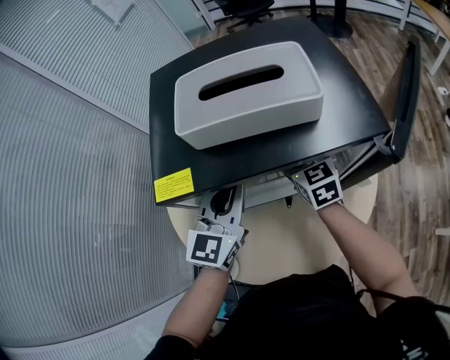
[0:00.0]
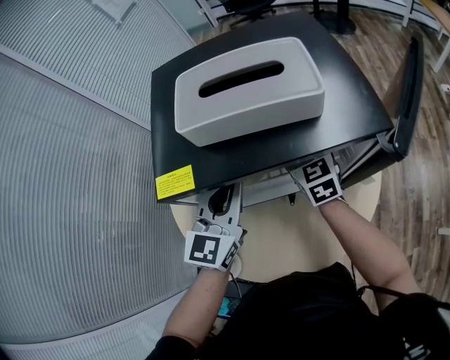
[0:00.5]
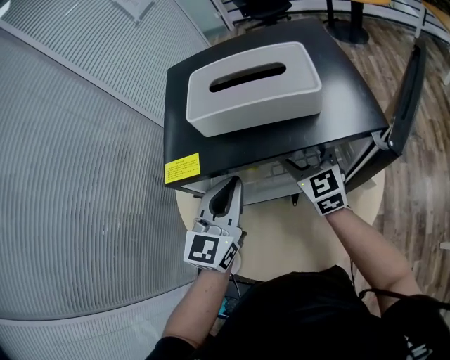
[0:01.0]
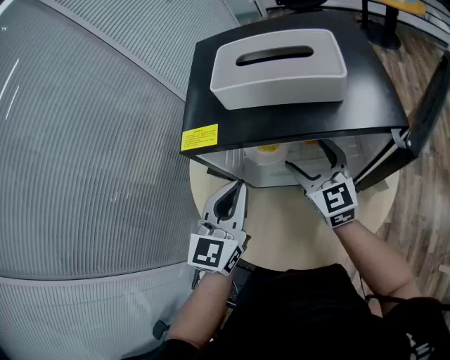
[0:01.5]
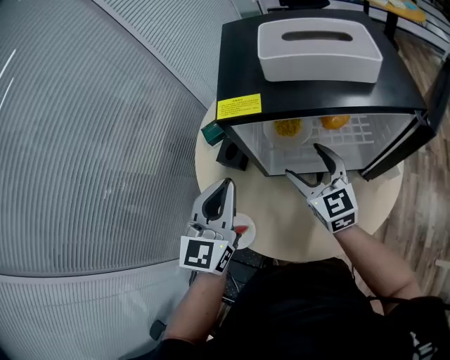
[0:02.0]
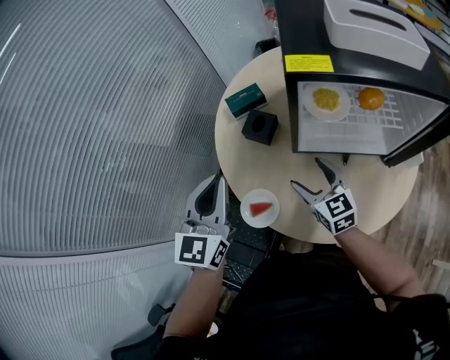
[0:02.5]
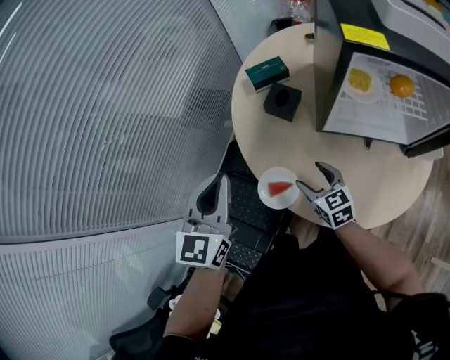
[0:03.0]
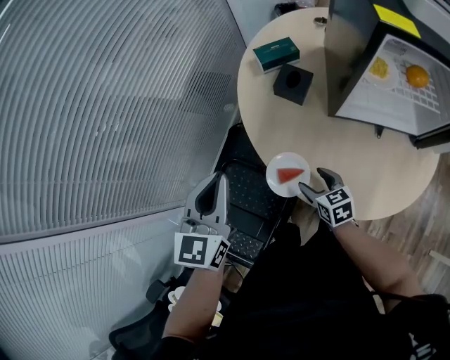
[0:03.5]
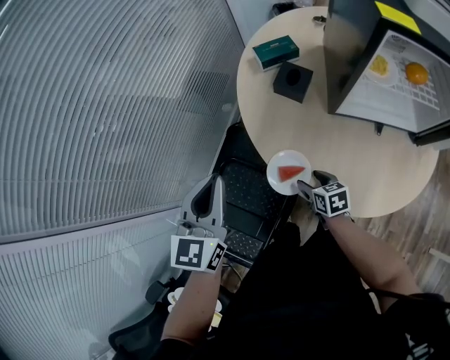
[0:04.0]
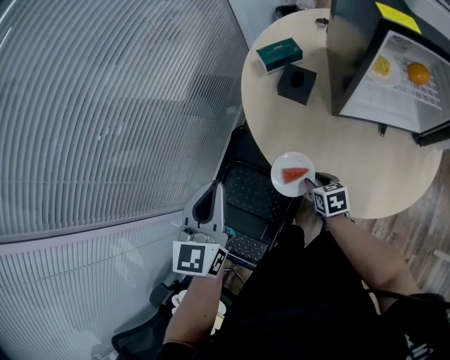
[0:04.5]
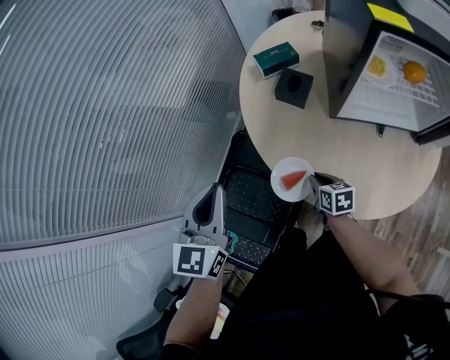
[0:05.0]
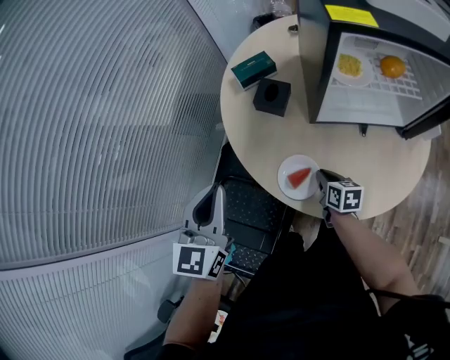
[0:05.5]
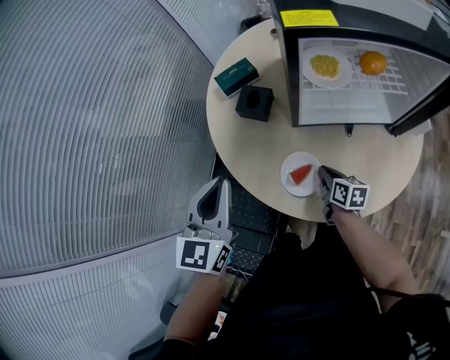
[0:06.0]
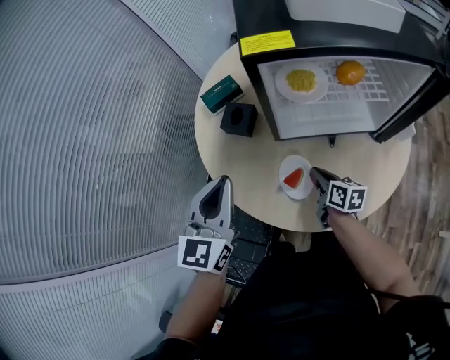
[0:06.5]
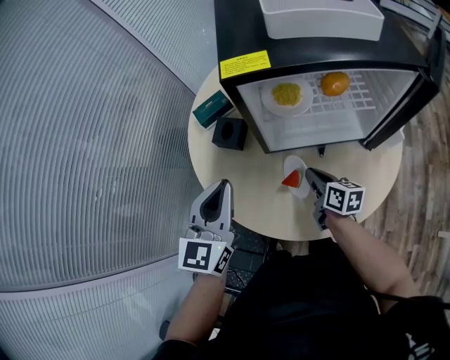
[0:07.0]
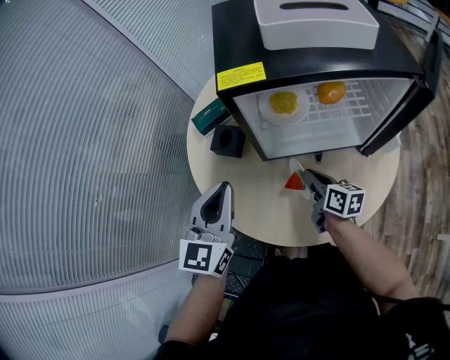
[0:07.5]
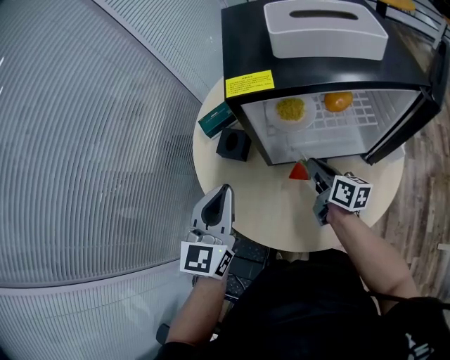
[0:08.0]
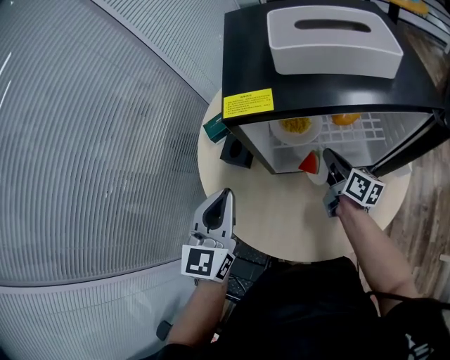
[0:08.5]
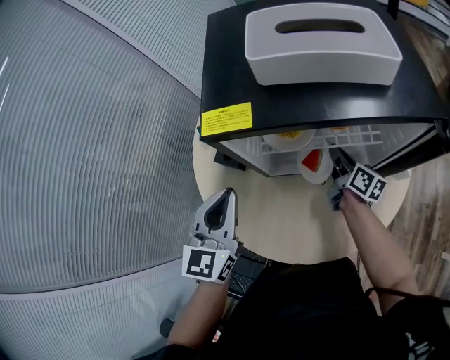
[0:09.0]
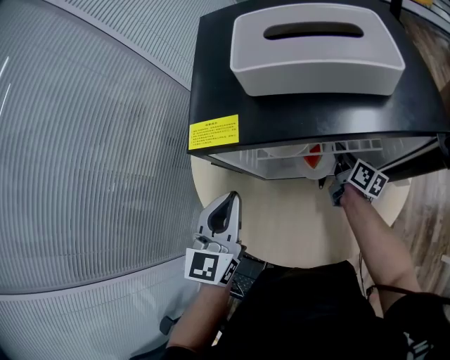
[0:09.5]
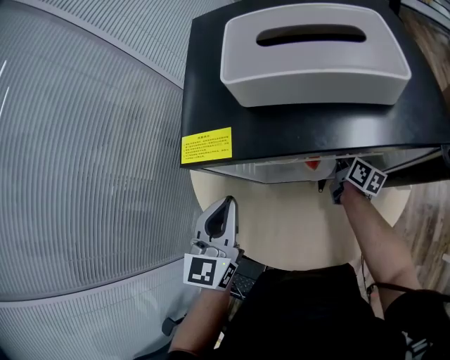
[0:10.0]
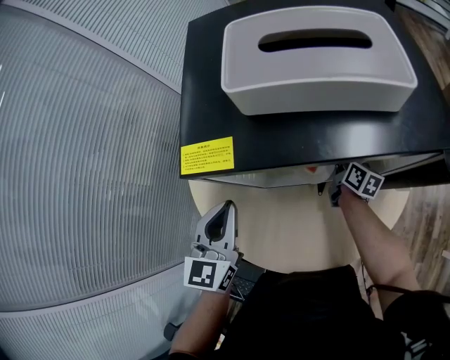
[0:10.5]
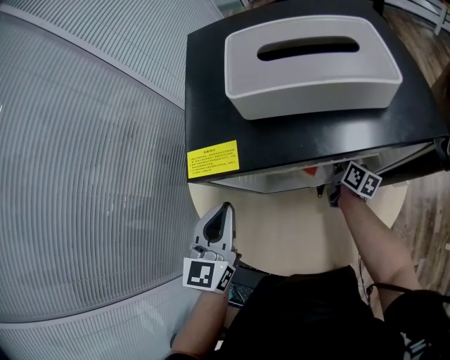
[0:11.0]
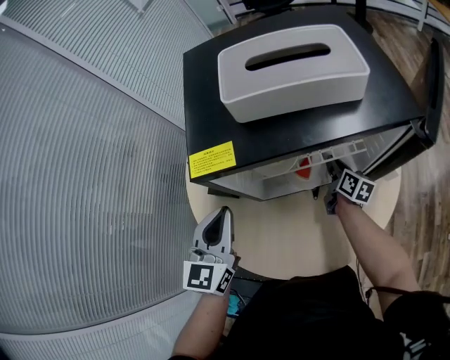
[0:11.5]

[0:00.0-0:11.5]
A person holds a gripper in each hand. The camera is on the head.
0:00.0 to 0:02.0: The left gripper heads to the left and backward, covering roughly 20 cm, while the right gripper moves backward and to the left, roughly 20 cm.
0:02.0 to 0:04.0: The right gripper moves downward, to the left and backward, roughly 40 cm, and tilts its fingers approximately 40 degrees downward, while the left gripper shifts roughly 30 cm to the left.
0:04.0 to 0:06.0: The grippers both shift to the right by about 15 cm. The right gripper changes its angle by some 30 degrees, and closes its fingers.
0:06.0 to 0:07.5: The left gripper shifts some 10 cm to the right. Meanwhile the right gripper goes about 15 cm upward, to the right and forward.
0:07.5 to 0:09.5: The right gripper shifts roughly 20 cm forward and to the right; the left gripper is displaced forward and to the right by some 10 cm.
0:09.5 to 0:11.5: There are only small adjustments of the grippers.

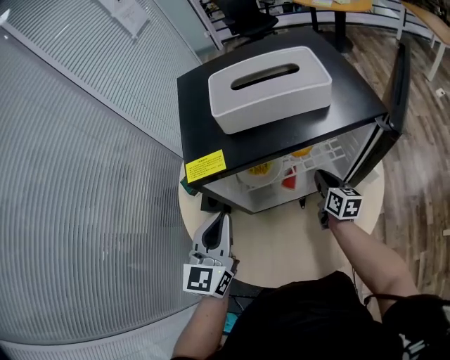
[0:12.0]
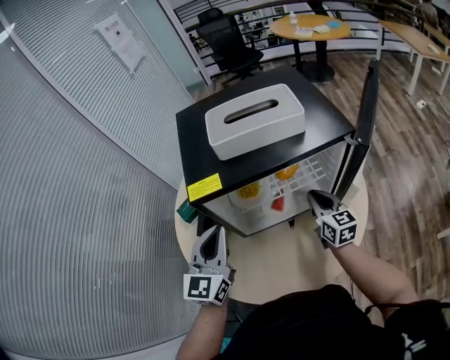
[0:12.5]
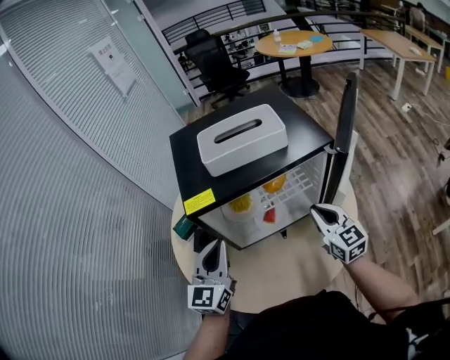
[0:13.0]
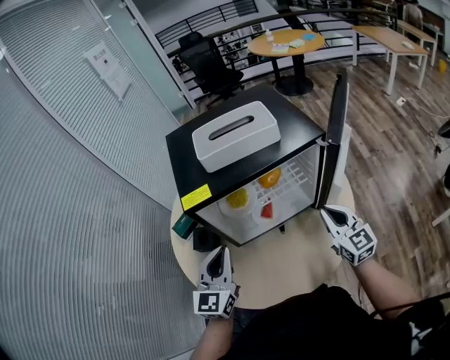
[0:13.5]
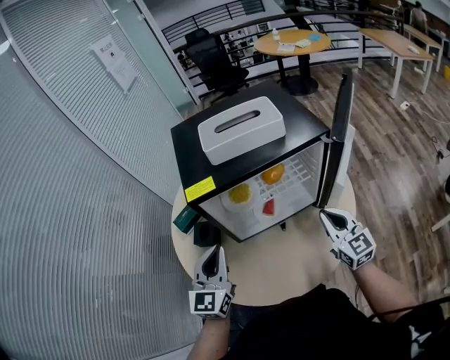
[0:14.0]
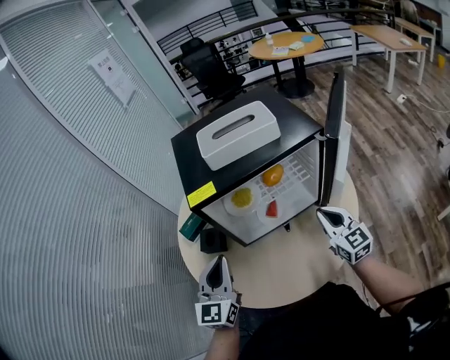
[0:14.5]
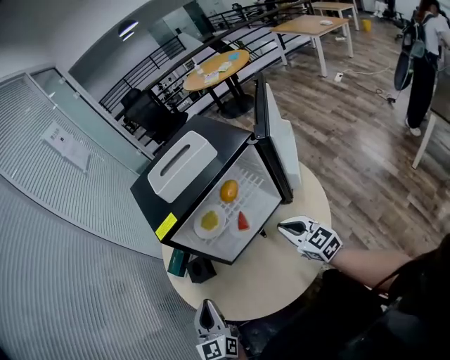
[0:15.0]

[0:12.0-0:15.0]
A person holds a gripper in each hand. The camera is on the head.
0:12.0 to 0:13.5: The right gripper moves upward and backward, approximately 20 cm, and changes its angle by roughly 40 degrees. Meanwhile the left gripper shifts by some 5 cm.
0:13.5 to 0:15.0: The right gripper shifts roughly 10 cm to the left and backward. Meanwhile the left gripper shifts approximately 10 cm backward and to the left.

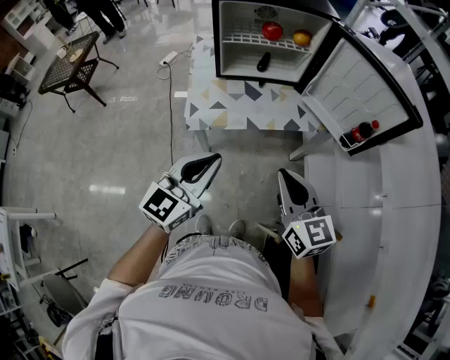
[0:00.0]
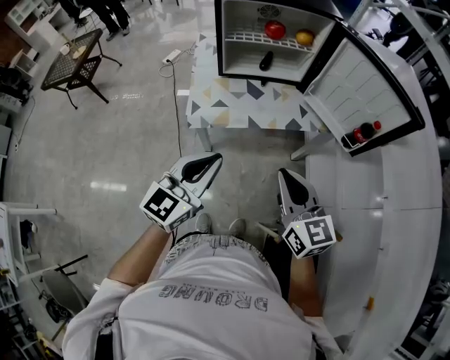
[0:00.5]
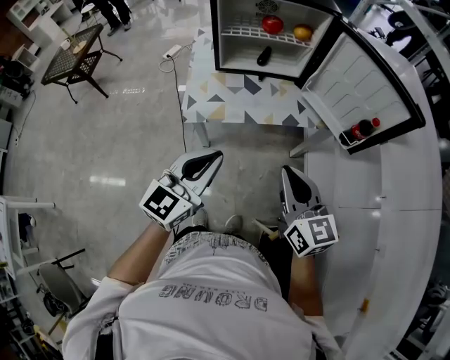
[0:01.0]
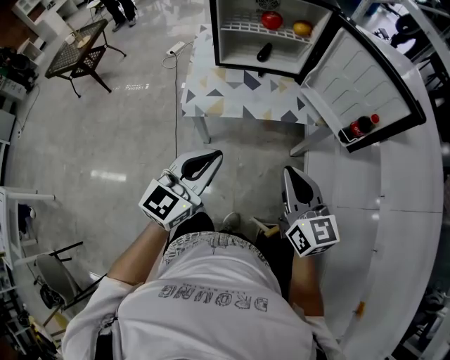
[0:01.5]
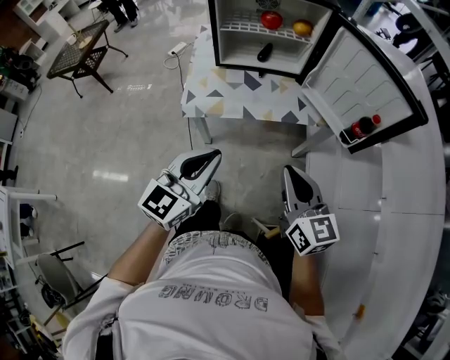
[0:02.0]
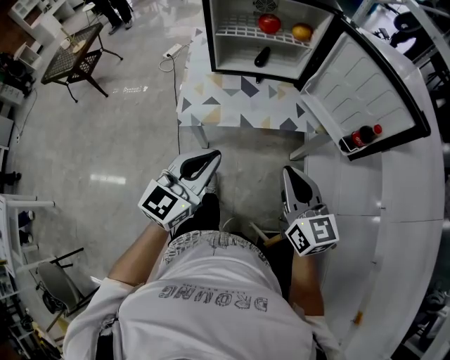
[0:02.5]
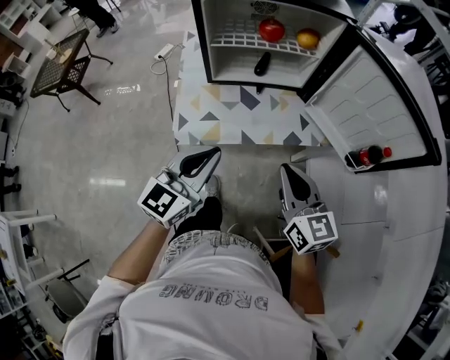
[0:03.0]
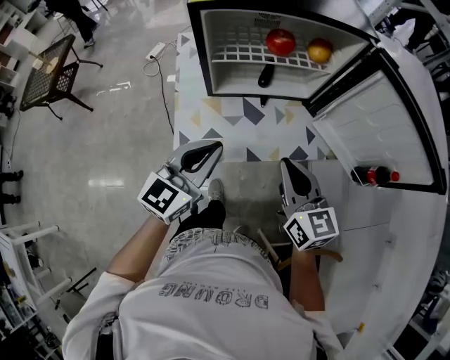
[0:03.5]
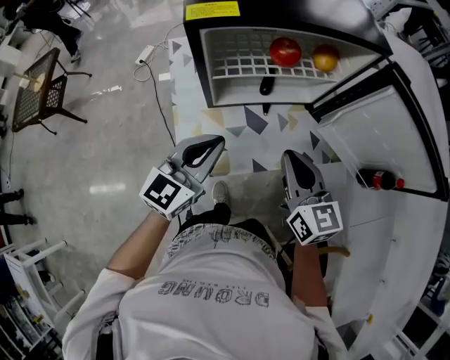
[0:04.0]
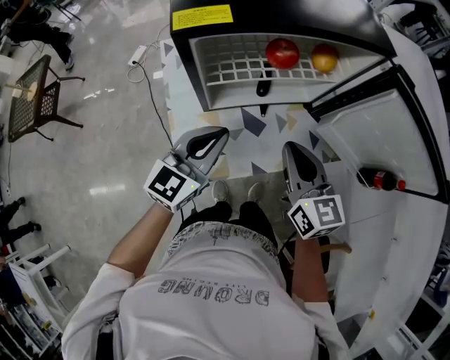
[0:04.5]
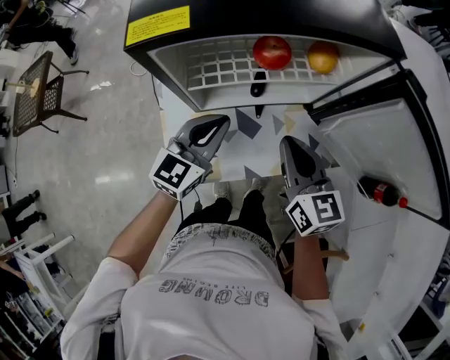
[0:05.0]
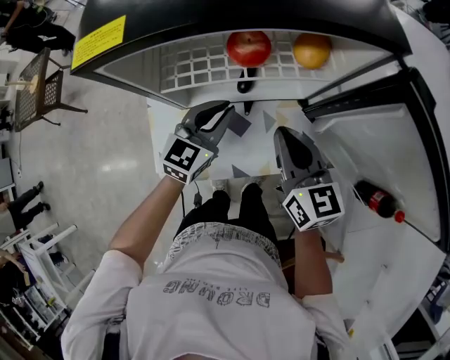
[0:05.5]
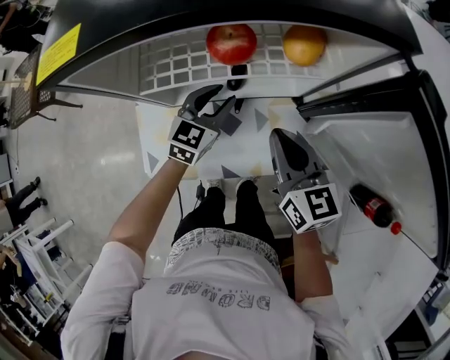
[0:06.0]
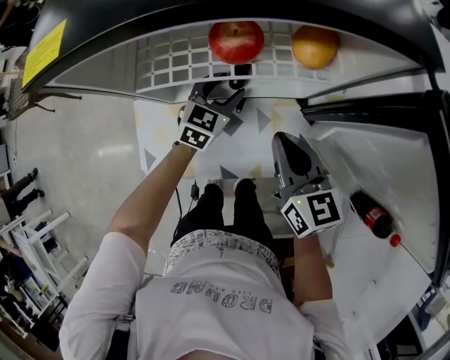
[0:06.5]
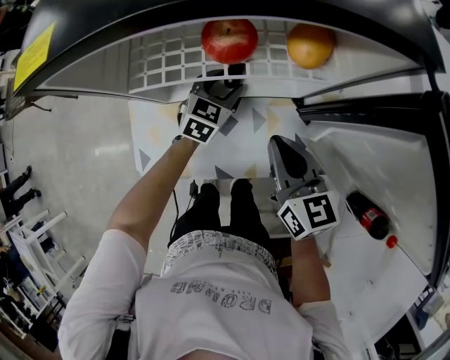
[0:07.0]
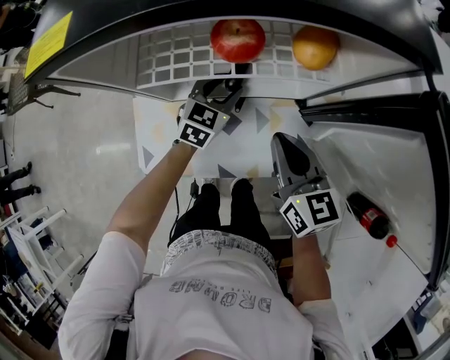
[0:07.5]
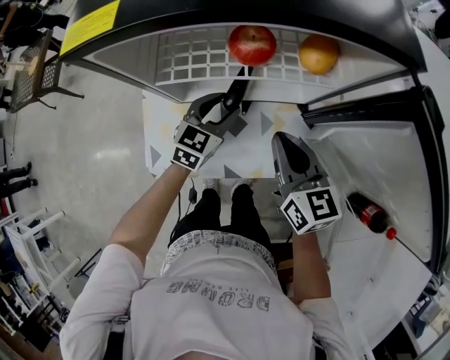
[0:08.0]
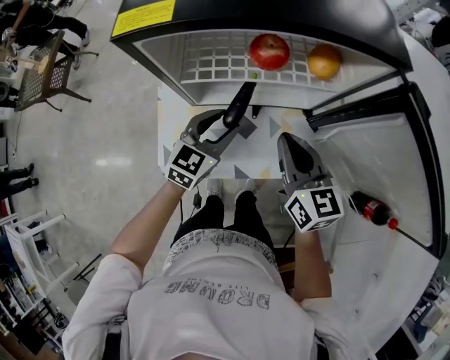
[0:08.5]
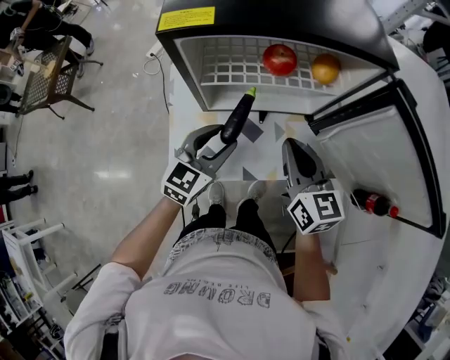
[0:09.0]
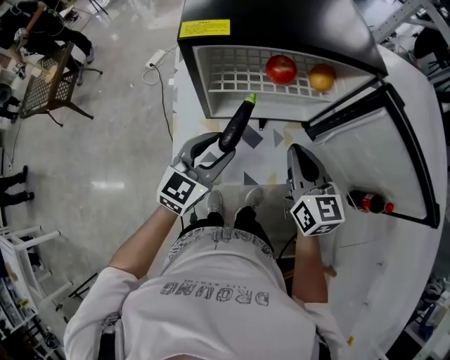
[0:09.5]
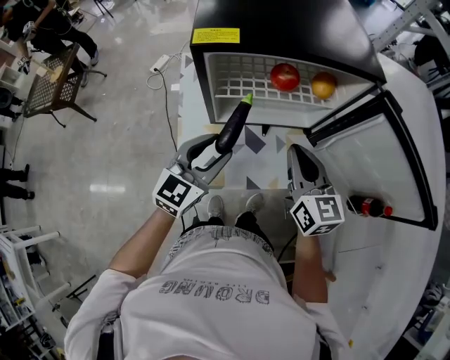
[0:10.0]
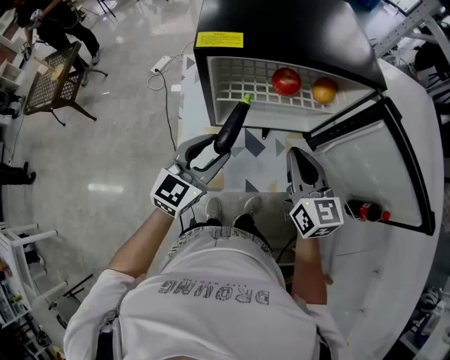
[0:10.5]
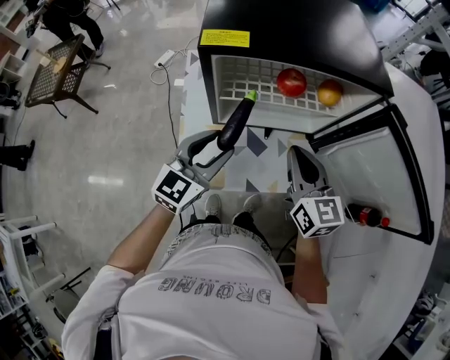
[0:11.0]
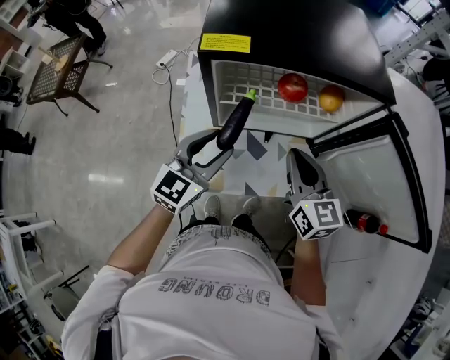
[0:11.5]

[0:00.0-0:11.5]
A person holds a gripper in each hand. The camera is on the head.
0:00.0 to 0:02.0: The two grippers go approximately 5 cm to the right.
0:02.0 to 0:04.0: The right gripper travels forward and to the left by about 30 cm. Meanwhile the left gripper shifts some 30 cm forward.
0:04.0 to 0:06.0: The right gripper travels forward, downward and to the right by about 15 cm, while the left gripper shifts approximately 30 cm forward, downward and to the right, rotates some 20 degrees, and opens up.
0:06.0 to 0:07.5: The left gripper shifts by roughly 5 cm.
0:07.5 to 0:09.5: The left gripper shifts some 30 cm backward, upward and to the left. The right gripper heads upward and backward, covering some 10 cm.
0:09.5 to 0:11.5: The grippers stay close to where they were, moving slightly.
